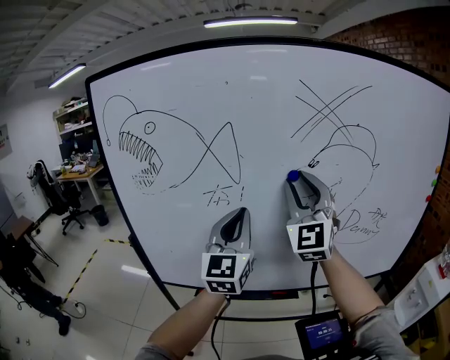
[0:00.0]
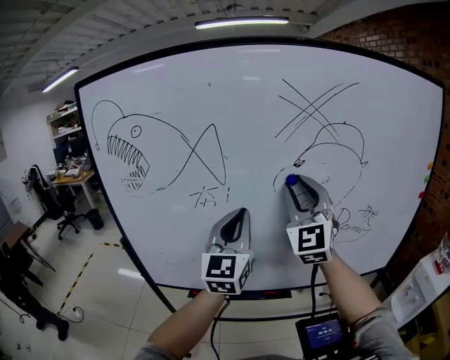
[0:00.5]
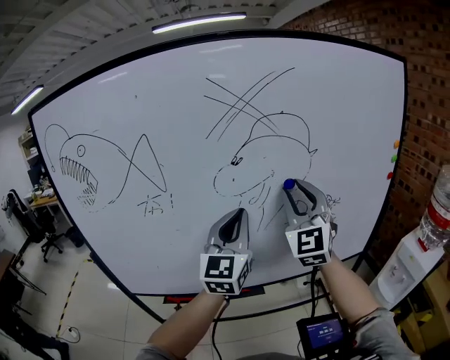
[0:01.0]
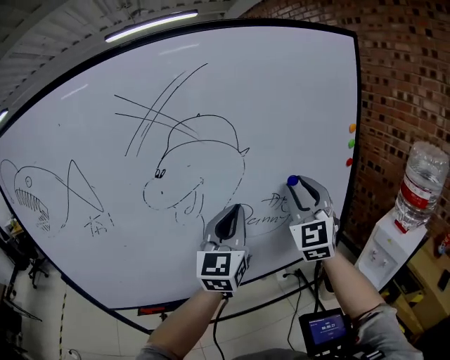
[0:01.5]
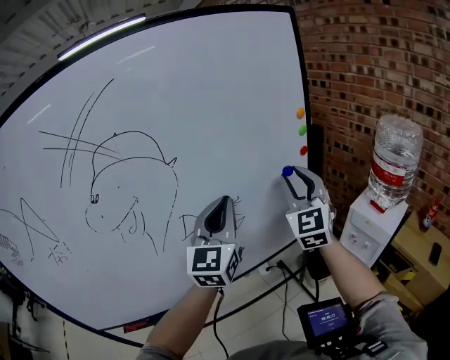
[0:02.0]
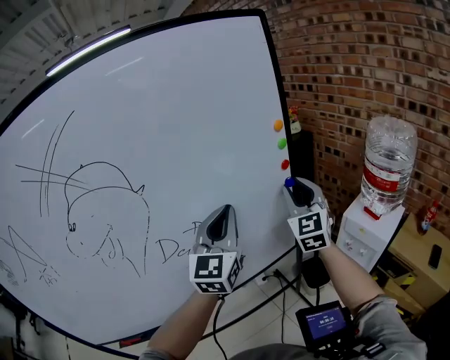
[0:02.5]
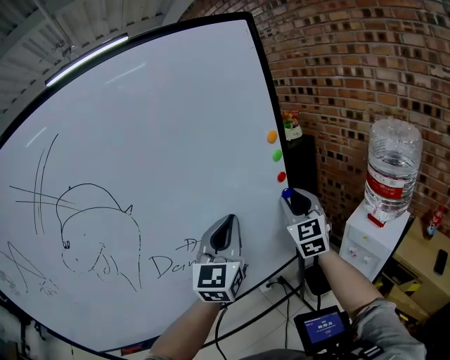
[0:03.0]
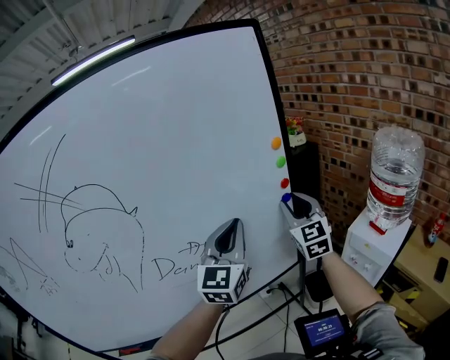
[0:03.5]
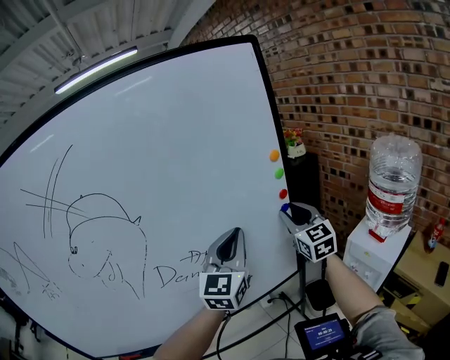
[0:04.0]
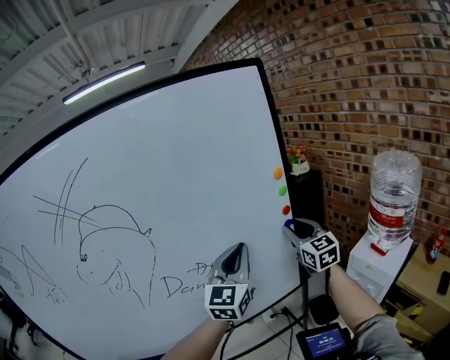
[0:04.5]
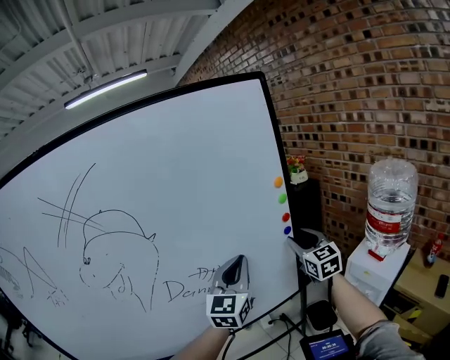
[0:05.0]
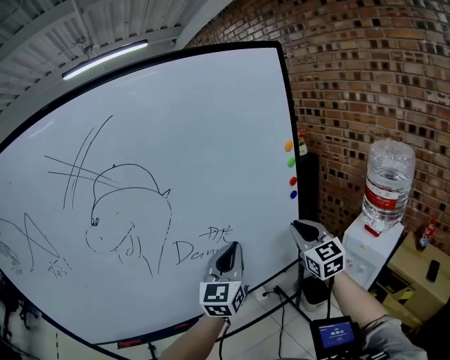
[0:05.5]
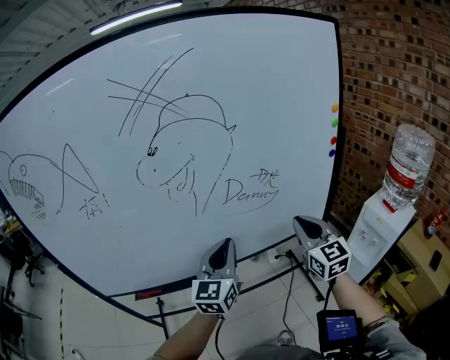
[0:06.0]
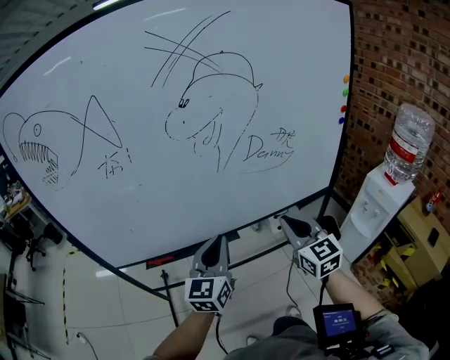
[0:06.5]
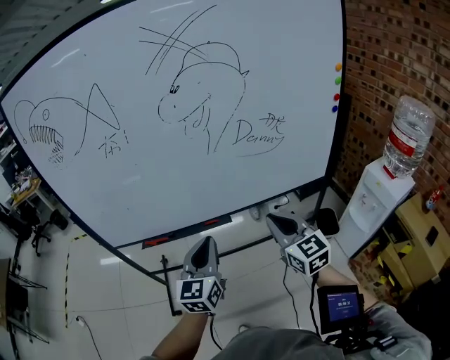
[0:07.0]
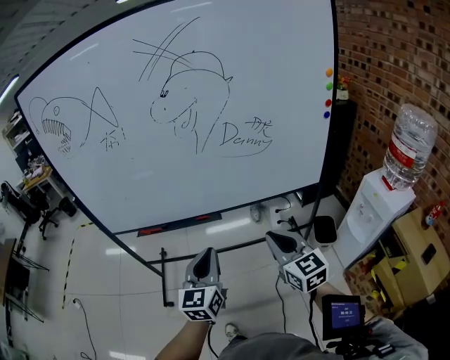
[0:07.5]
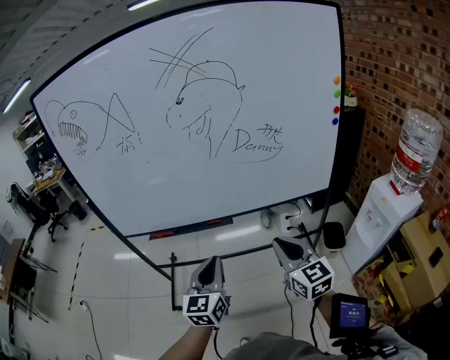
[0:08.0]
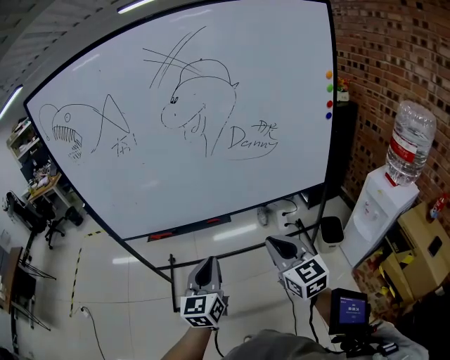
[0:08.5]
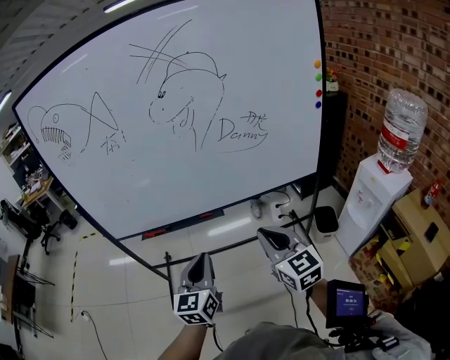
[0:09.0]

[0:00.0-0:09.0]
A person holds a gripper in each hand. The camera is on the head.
0:00.0 to 0:02.0: The two grippers travel together, roughly 50 cm. The right gripper turns by about 30 degrees, while the left gripper changes its angle by some 30 degrees.
0:02.0 to 0:04.5: The right gripper moves forward, to the right and downward, some 15 cm, and changes its angle by roughly 30 degrees, while the left gripper goes roughly 10 cm to the right and forward.
0:04.5 to 0:07.0: The pair of grippers is taken backward and to the left, about 50 cm. The right gripper rotates roughly 20 degrees, and closes its fingers. Meanwhile the left gripper goes about 15 cm downward, and rotates about 30 degrees.
0:07.0 to 0:09.0: The grippers both shift backward by roughly 10 cm.

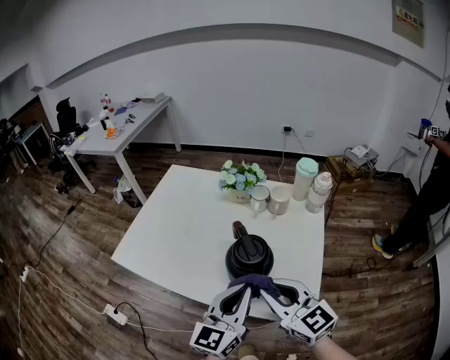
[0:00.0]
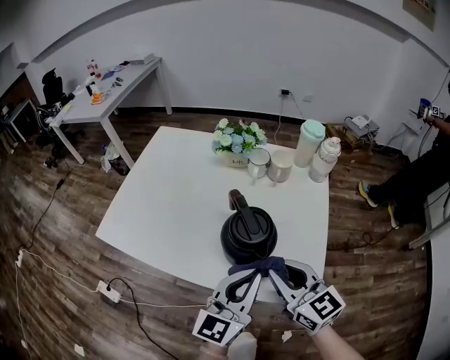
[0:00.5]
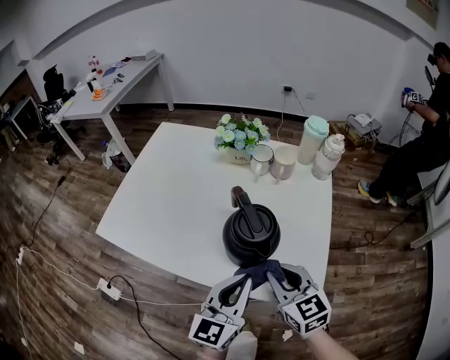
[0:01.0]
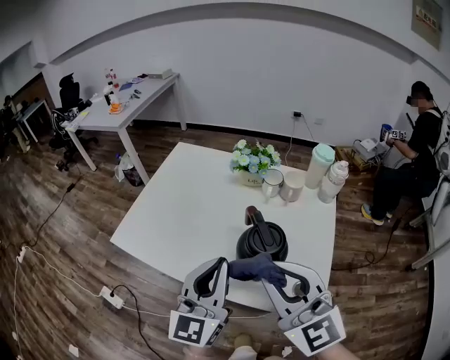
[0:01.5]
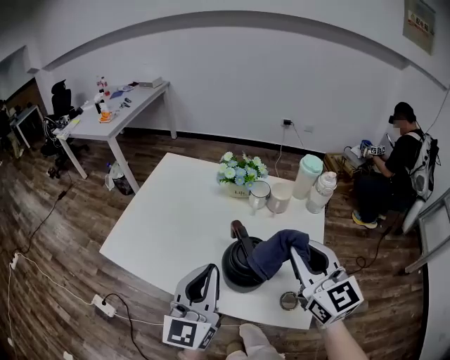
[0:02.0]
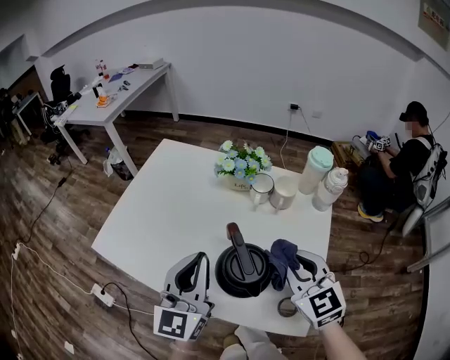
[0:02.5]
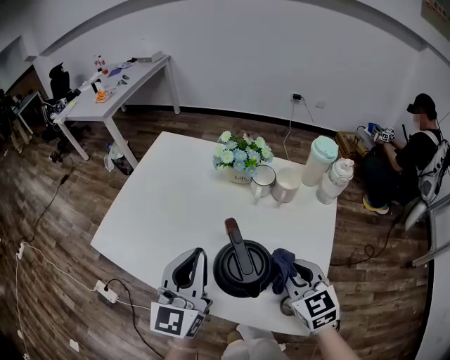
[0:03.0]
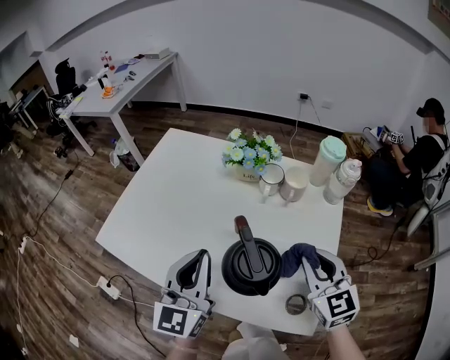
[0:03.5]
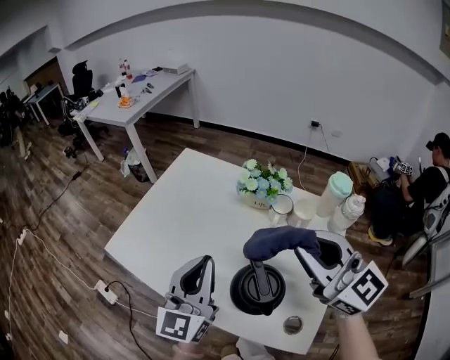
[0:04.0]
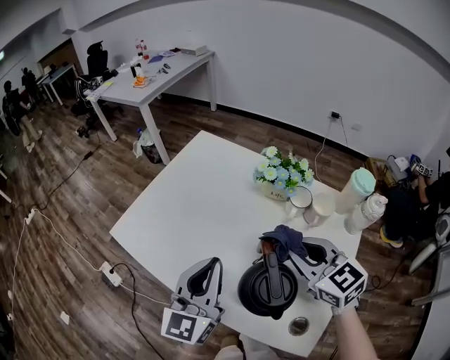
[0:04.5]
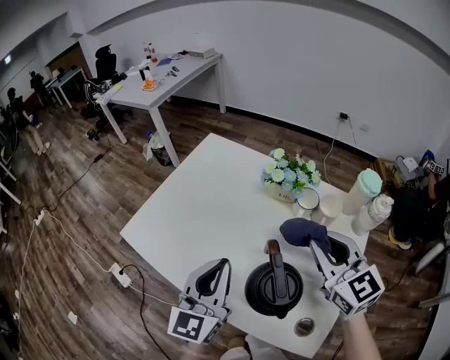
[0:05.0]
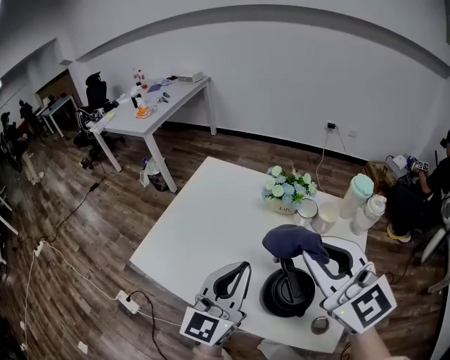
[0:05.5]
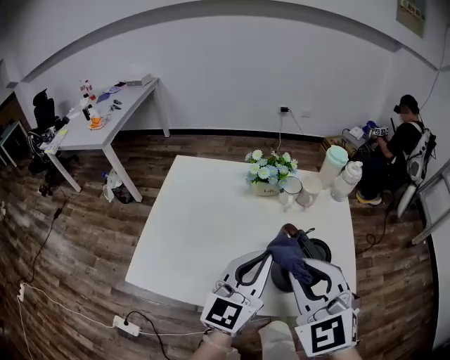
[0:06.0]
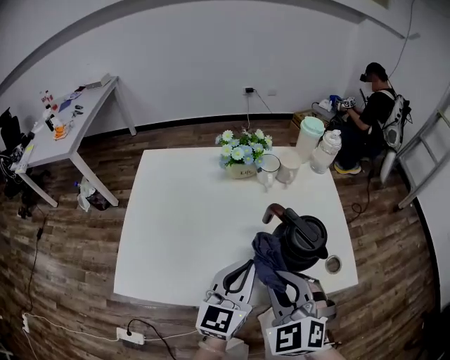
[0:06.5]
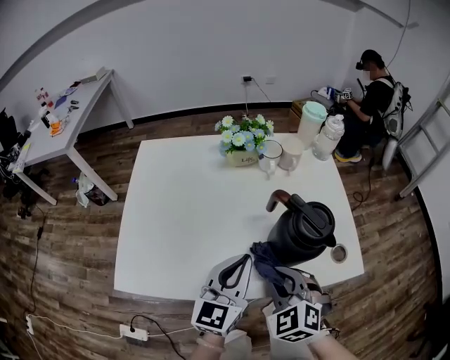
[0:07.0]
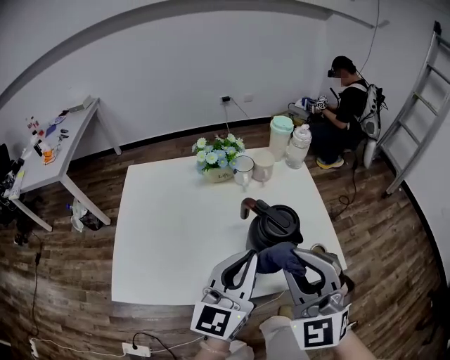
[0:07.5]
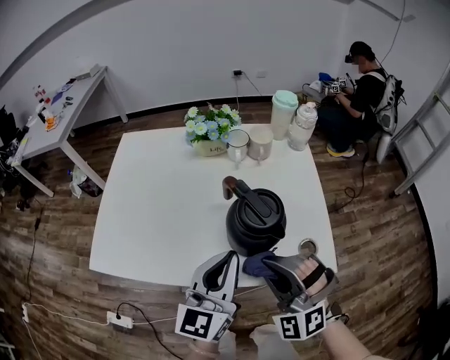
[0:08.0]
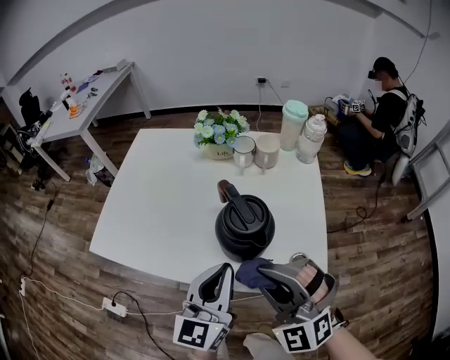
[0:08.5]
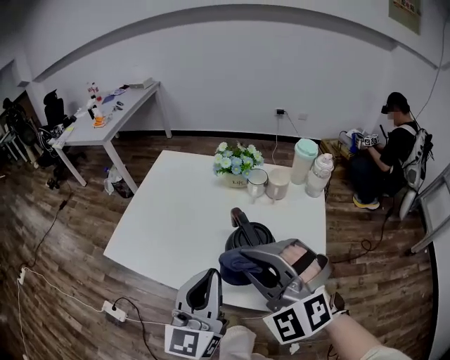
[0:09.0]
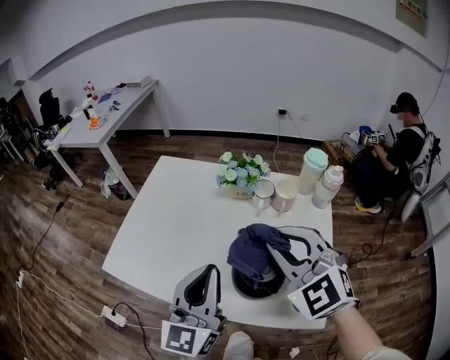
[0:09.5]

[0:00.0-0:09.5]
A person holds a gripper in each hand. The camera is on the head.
0:00.0 to 0:02.0: The left gripper heads forward and to the left, covering about 10 cm, while the right gripper shifts about 15 cm forward, upward and to the right.
0:02.0 to 0:04.0: Both grippers move forward, about 10 cm. The right gripper moves roughly 20 cm downward and comes back, and turns by approximately 30 degrees.
0:04.0 to 0:05.5: The right gripper travels to the left by approximately 5 cm, and moves approximately 15 cm downward and comes back.
0:05.5 to 0:07.5: The left gripper goes downward and returns, some 15 cm each way, and changes its angle by approximately 30 degrees; the right gripper goes downward and returns, about 25 cm each way, and changes its angle by approximately 50 degrees.
0:07.5 to 0:09.5: The left gripper moves roughly 5 cm downward and comes back, and swivels roughly 30 degrees; the right gripper reaches roughly 15 cm downward, then returns, and rotates some 30 degrees.

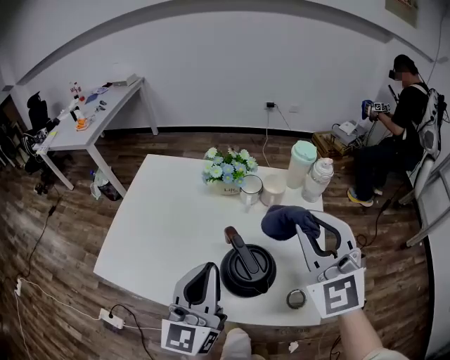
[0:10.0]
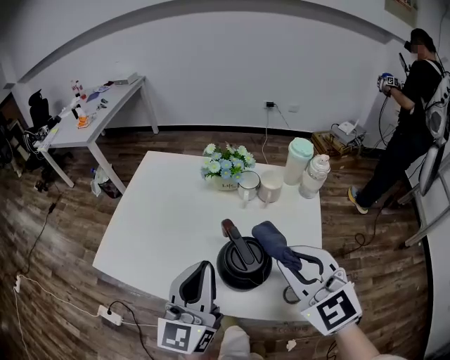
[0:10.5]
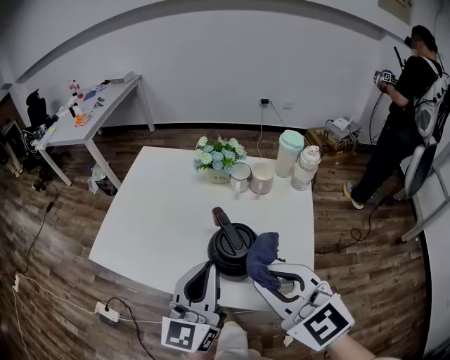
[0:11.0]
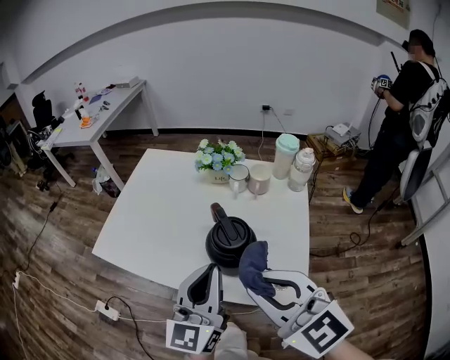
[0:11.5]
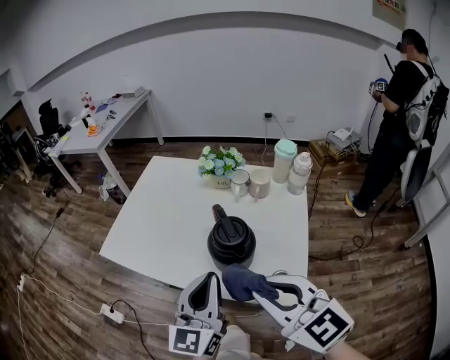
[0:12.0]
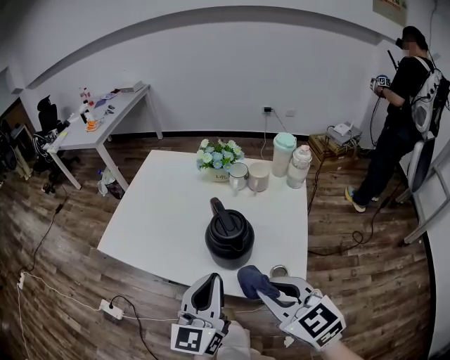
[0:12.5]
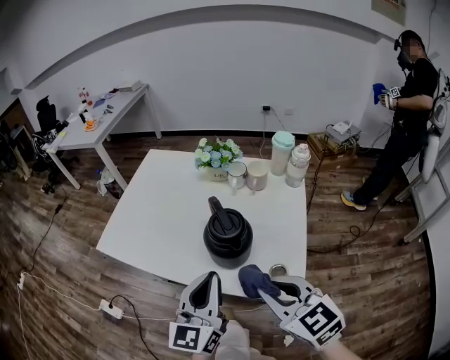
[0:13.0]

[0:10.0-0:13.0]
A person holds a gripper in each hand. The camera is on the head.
0:10.0 to 0:11.5: The left gripper moves backward, some 10 cm, while the right gripper heads backward and to the left, covering roughly 20 cm, and turns by about 40 degrees.
0:11.5 to 0:13.0: The left gripper ends up roughly 5 cm from where it was. The right gripper shifts about 10 cm downward.

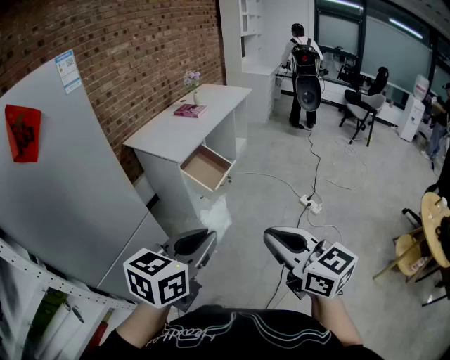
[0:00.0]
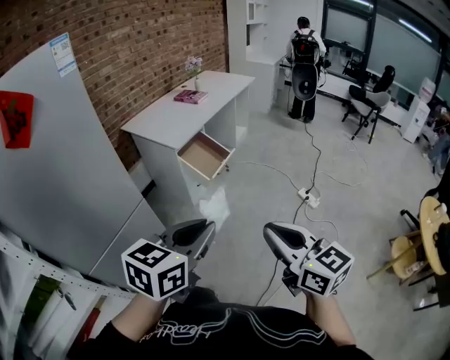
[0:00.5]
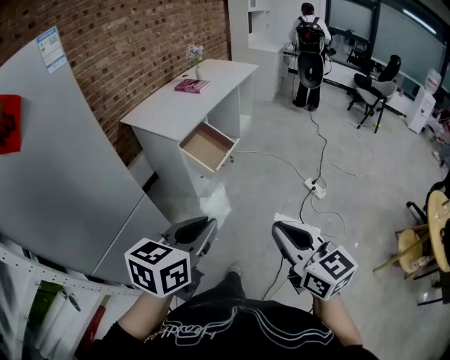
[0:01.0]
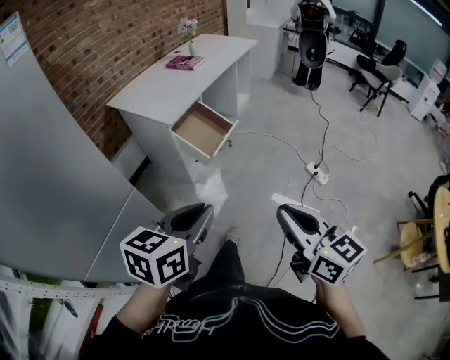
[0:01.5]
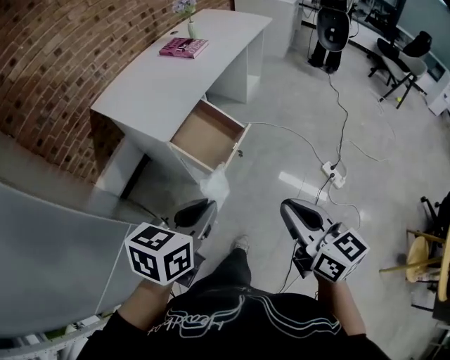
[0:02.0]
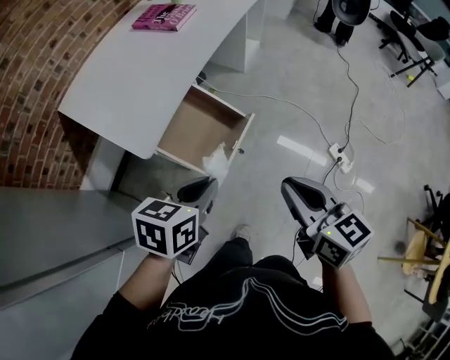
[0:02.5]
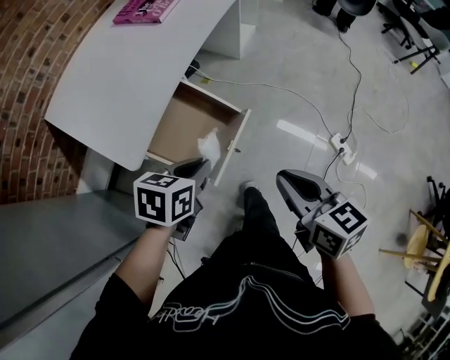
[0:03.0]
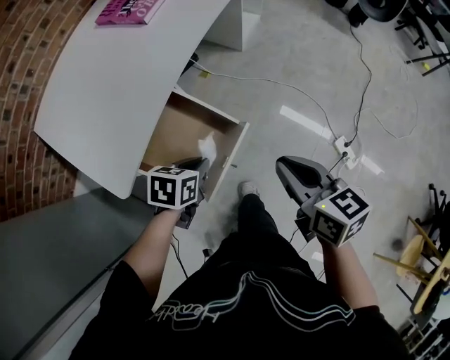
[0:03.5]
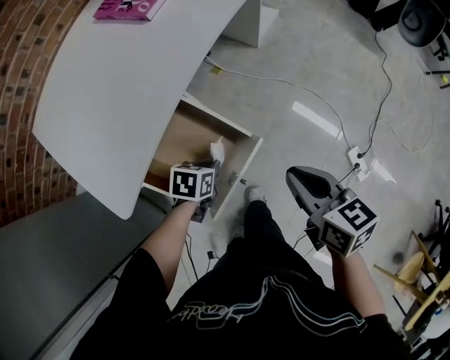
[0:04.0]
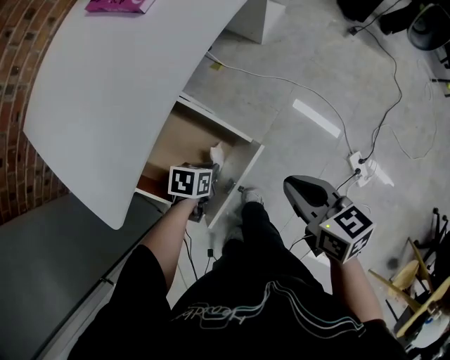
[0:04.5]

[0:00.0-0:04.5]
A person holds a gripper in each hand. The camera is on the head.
0:00.0 to 0:02.0: The two grippers travel together, forward, approximately 40 cm.
0:02.0 to 0:04.5: The pair of grippers is taken forward, about 50 cm. The left gripper goes about 50 cm downward, and tips its fingers downward by approximately 30 degrees, while the right gripper goes roughly 30 cm downward, and swivels approximately 30 degrees.
